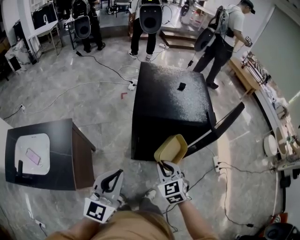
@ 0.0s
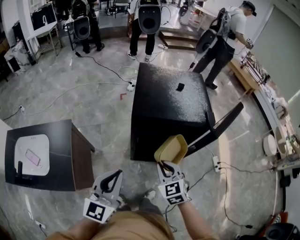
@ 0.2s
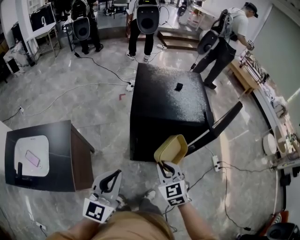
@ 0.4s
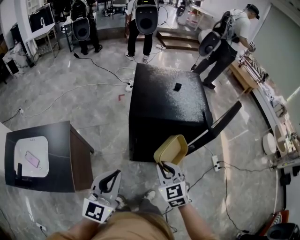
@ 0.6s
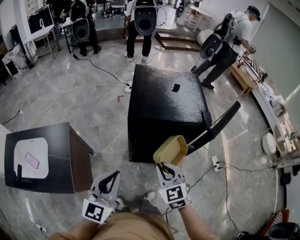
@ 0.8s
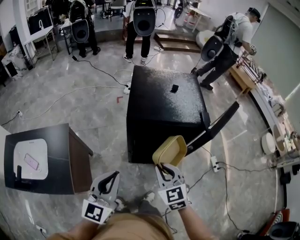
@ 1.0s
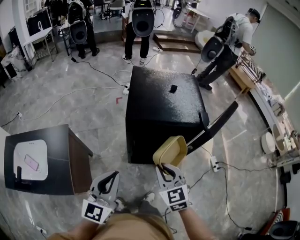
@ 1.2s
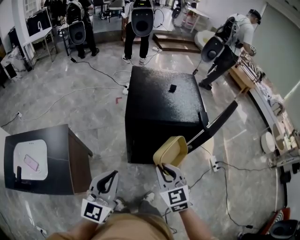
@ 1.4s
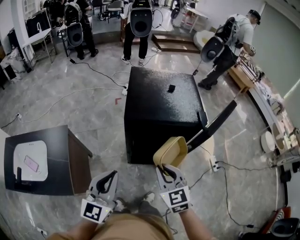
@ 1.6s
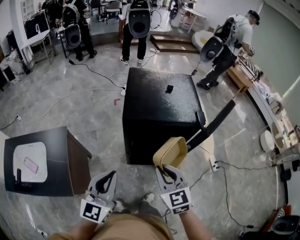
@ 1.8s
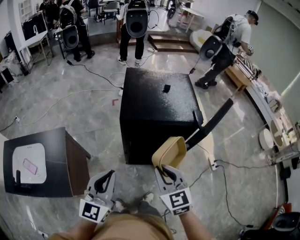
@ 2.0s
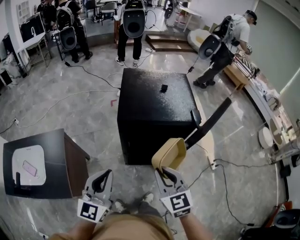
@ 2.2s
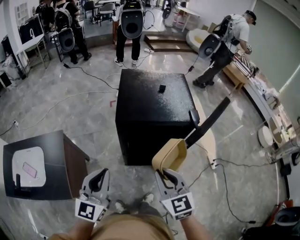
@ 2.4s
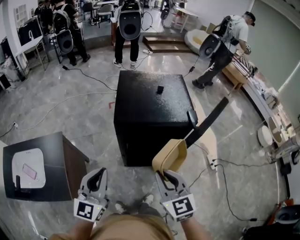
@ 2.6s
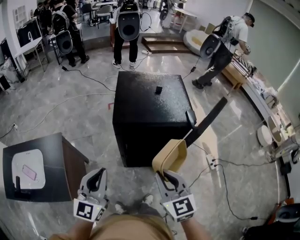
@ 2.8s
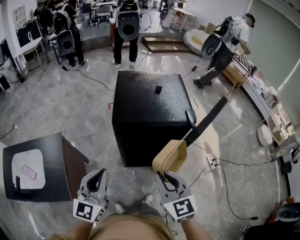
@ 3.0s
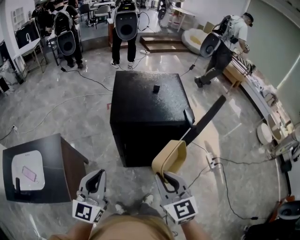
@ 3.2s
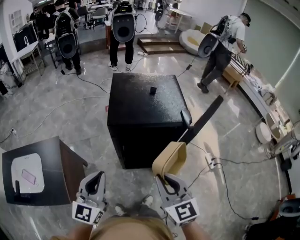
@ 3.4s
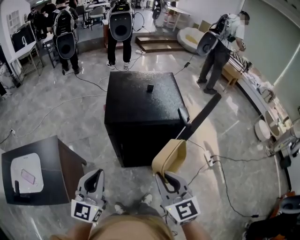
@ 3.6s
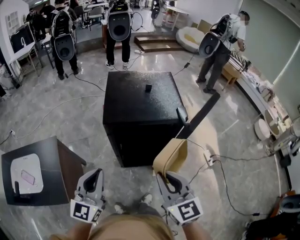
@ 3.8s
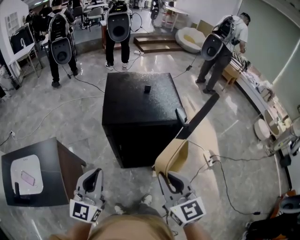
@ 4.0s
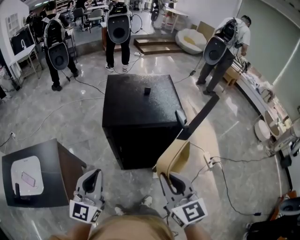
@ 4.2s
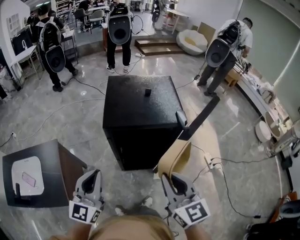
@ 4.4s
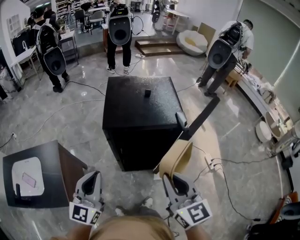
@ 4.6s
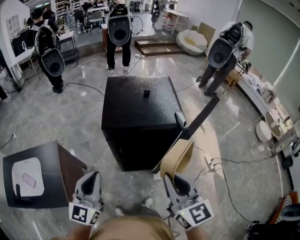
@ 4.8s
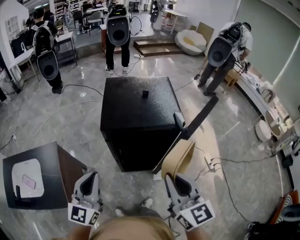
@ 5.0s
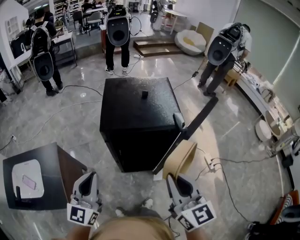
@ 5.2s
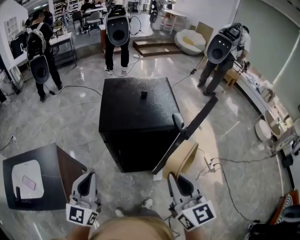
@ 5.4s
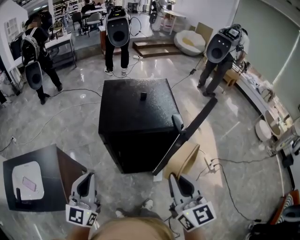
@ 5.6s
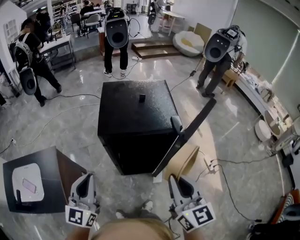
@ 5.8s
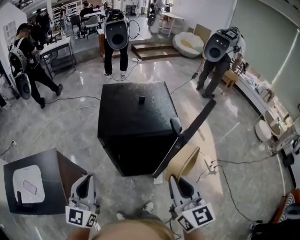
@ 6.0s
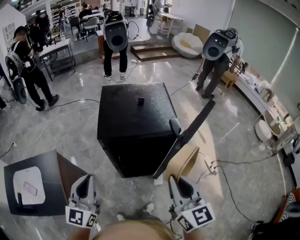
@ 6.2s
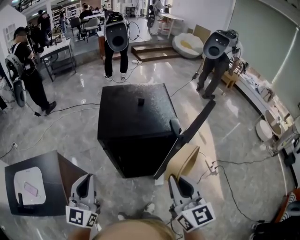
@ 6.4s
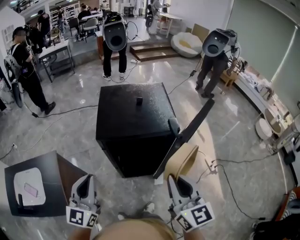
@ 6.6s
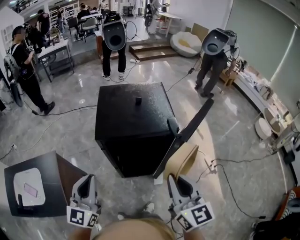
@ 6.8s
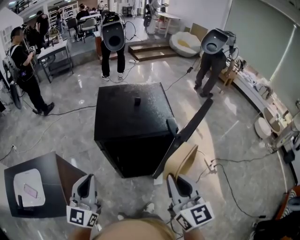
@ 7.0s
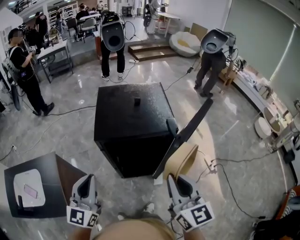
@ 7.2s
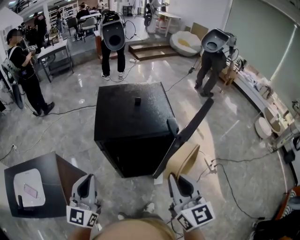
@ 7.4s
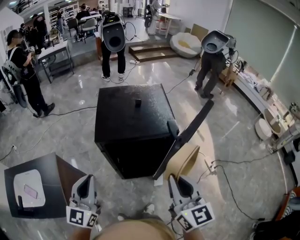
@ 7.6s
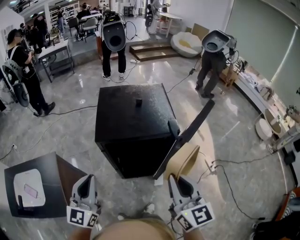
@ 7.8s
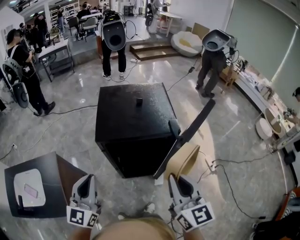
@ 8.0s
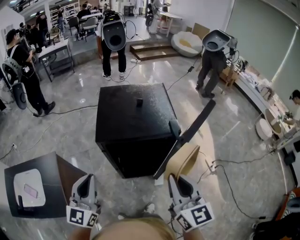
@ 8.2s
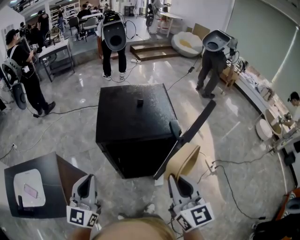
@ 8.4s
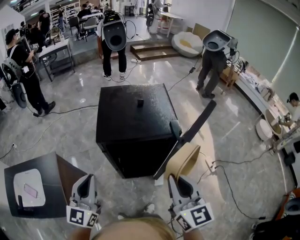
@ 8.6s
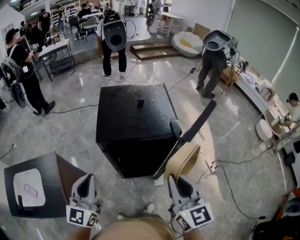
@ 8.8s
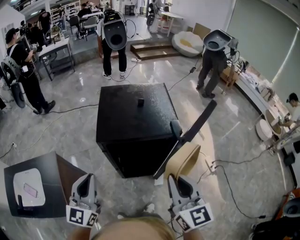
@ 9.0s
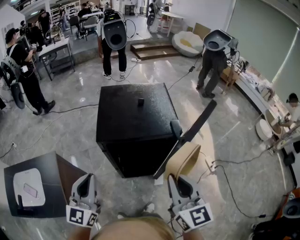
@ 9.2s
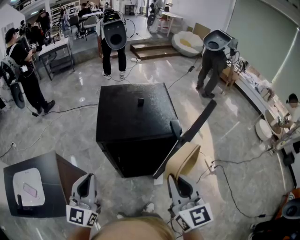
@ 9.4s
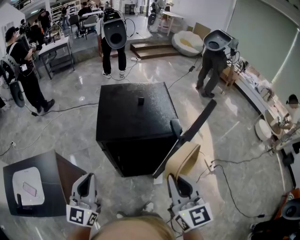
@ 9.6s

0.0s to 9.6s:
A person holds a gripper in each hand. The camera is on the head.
0.0s to 1.6s: The right gripper shifts some 5 cm upward.
1.6s to 3.2s: The right gripper is displaced upward by roughly 5 cm.
3.2s to 4.8s: The right gripper shifts about 5 cm upward.
4.8s to 8.0s: The grippers make only small movements.
8.0s to 9.6s: Both grippers stay about where they are.

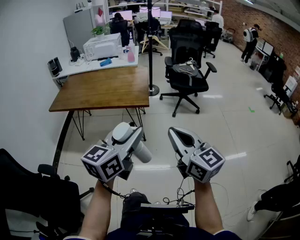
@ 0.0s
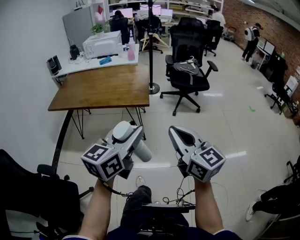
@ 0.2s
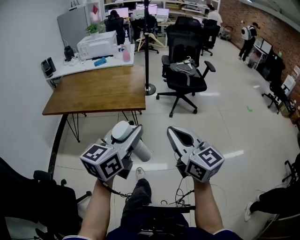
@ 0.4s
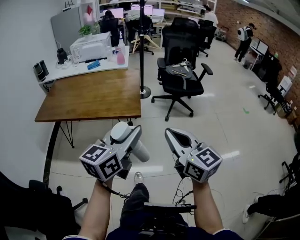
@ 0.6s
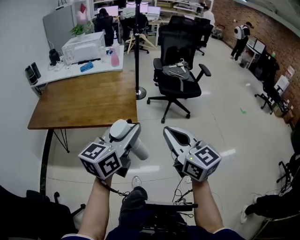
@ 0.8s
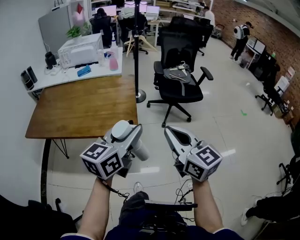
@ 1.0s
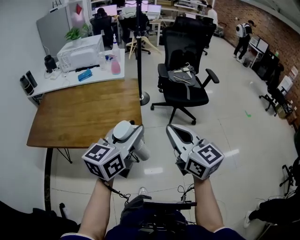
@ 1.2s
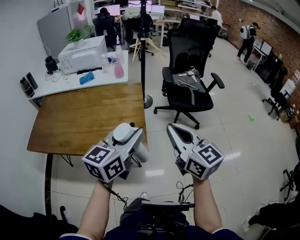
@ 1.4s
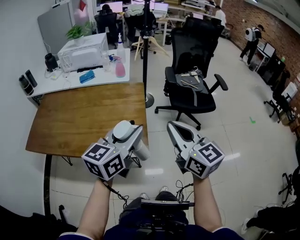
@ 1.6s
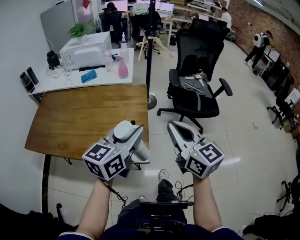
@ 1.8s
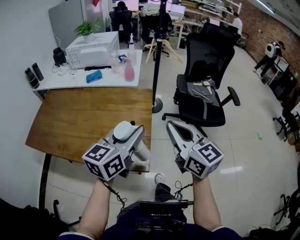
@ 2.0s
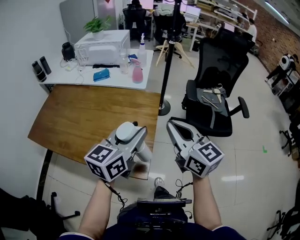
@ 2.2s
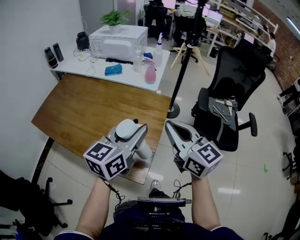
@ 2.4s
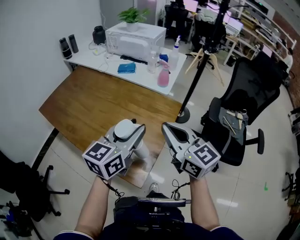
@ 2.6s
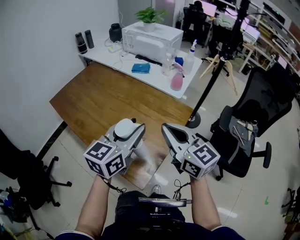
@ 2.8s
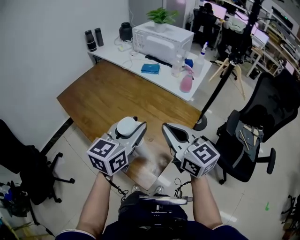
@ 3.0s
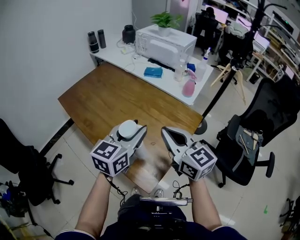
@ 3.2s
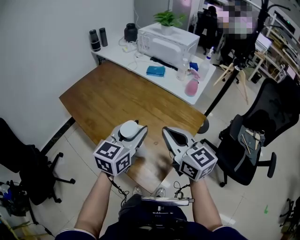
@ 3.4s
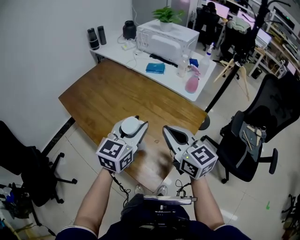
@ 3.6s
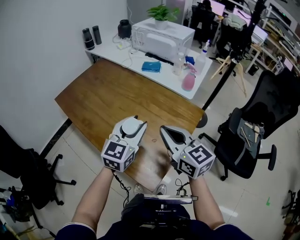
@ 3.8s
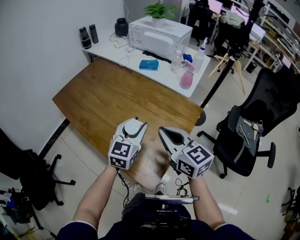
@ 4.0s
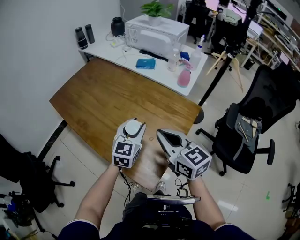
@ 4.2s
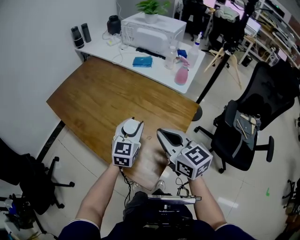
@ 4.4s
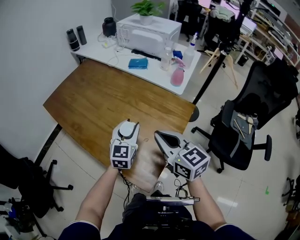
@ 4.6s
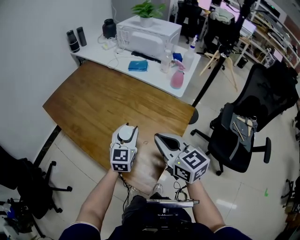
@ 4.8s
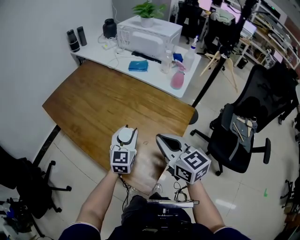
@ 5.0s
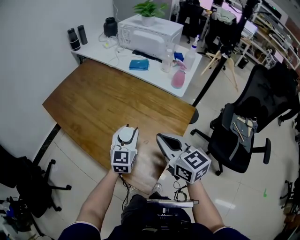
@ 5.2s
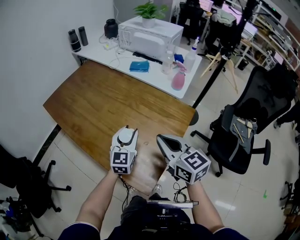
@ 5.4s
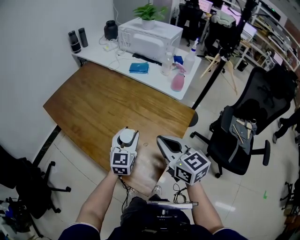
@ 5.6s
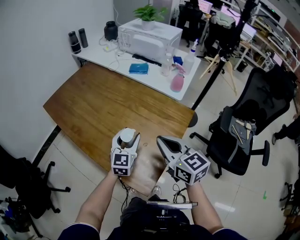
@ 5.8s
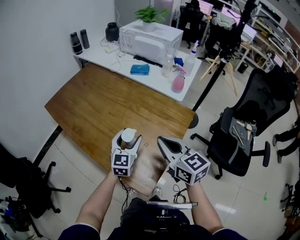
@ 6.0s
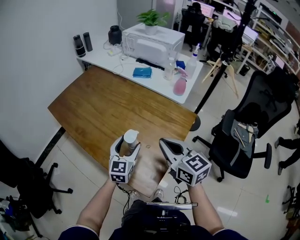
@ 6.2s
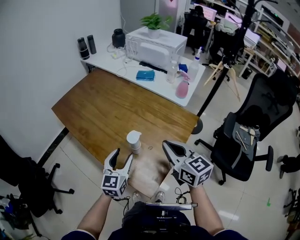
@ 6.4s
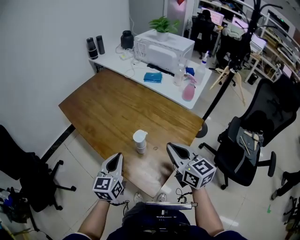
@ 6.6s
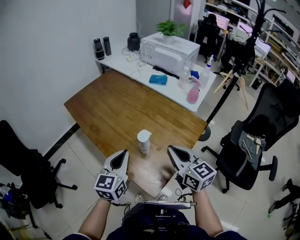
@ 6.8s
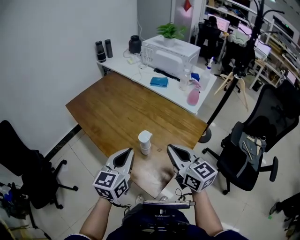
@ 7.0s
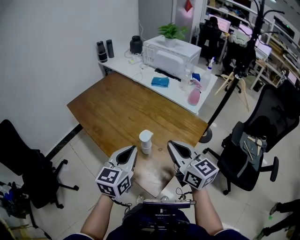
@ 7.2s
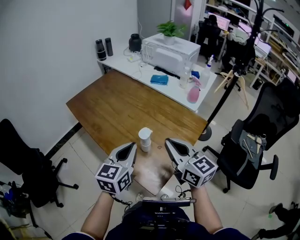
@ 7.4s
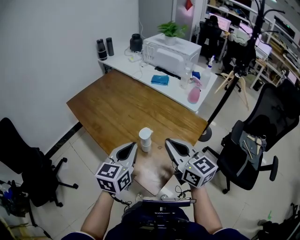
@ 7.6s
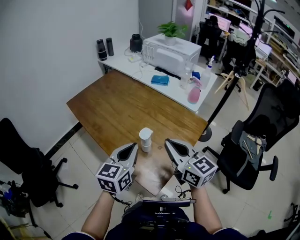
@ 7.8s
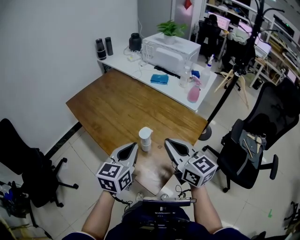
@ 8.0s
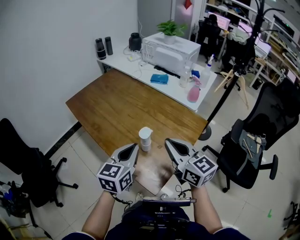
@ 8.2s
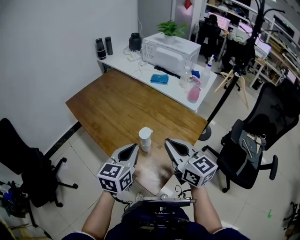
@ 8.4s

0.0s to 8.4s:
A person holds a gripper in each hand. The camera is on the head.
0.0s to 1.4s: Both grippers move forward, about 40 cm.
1.4s to 2.8s: The right gripper shifts by some 25 cm, and swivels approximately 40 degrees. Meanwhile the left gripper ends up roughly 20 cm from where it was, and swivels approximately 40 degrees.
2.8s to 4.2s: The right gripper moves downward and to the left, about 10 cm. Meanwhile the left gripper heads downward and forward, covering some 15 cm, and changes its angle by some 20 degrees.
4.2s to 5.6s: The grippers move only a little.
5.6s to 7.0s: The left gripper goes about 15 cm backward, upward and to the left, and closes.
7.0s to 8.4s: The grippers make only small movements.

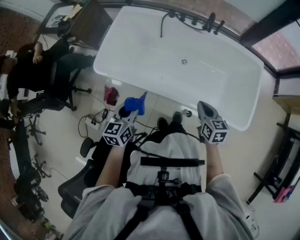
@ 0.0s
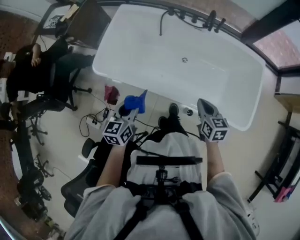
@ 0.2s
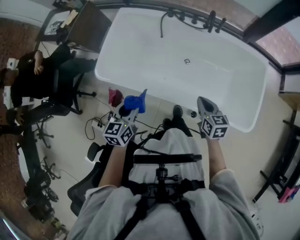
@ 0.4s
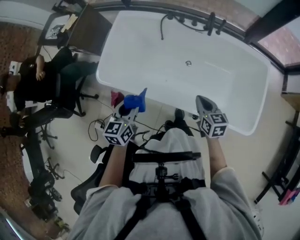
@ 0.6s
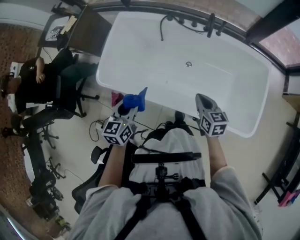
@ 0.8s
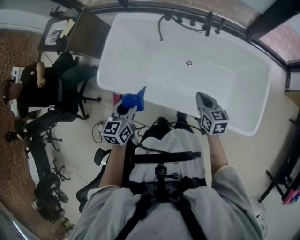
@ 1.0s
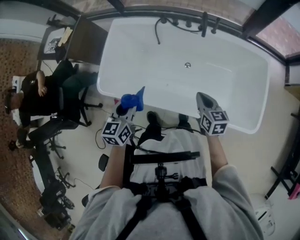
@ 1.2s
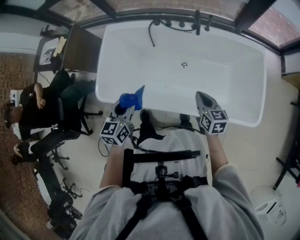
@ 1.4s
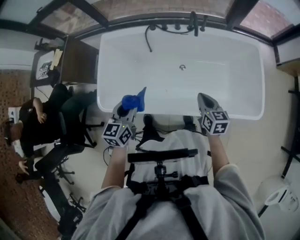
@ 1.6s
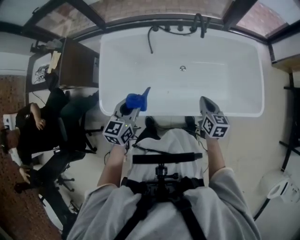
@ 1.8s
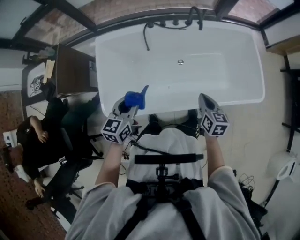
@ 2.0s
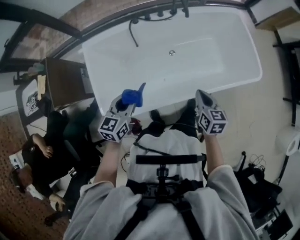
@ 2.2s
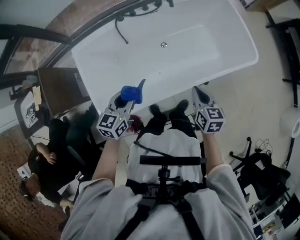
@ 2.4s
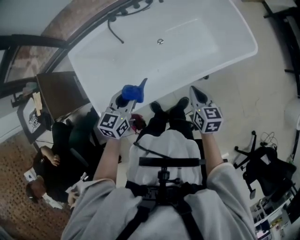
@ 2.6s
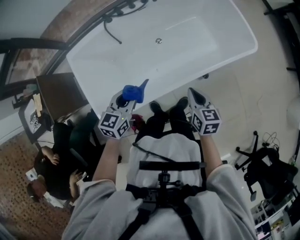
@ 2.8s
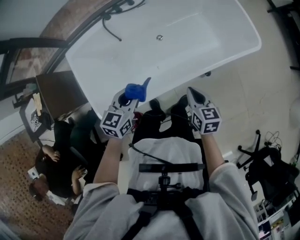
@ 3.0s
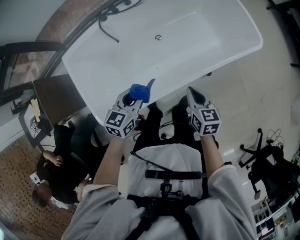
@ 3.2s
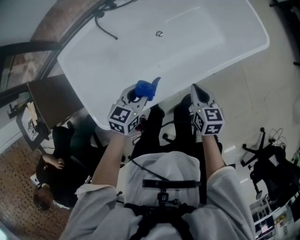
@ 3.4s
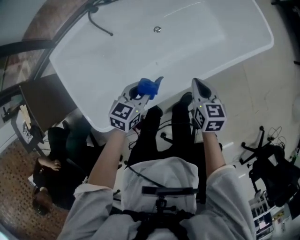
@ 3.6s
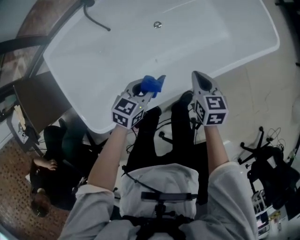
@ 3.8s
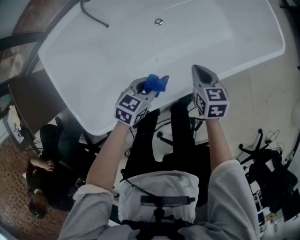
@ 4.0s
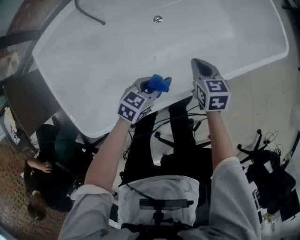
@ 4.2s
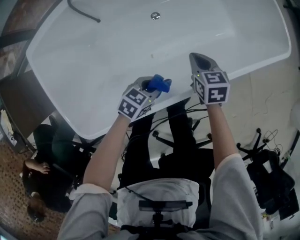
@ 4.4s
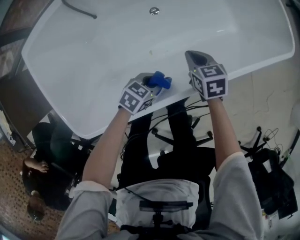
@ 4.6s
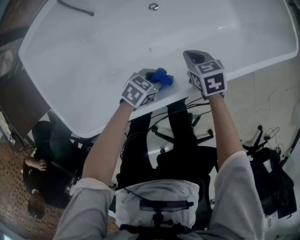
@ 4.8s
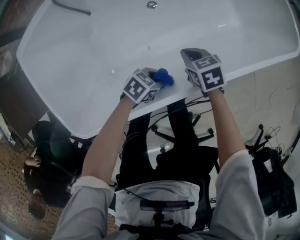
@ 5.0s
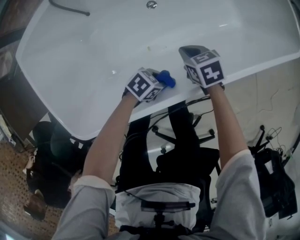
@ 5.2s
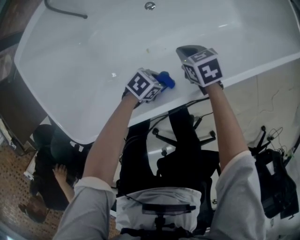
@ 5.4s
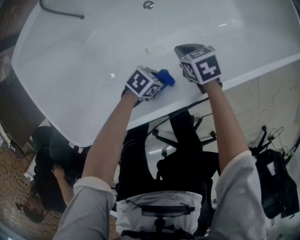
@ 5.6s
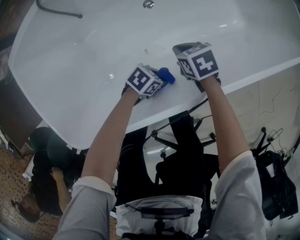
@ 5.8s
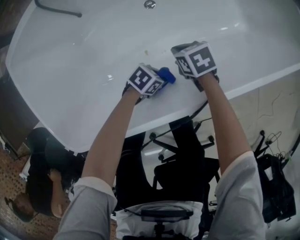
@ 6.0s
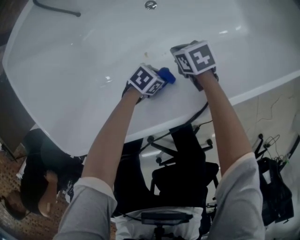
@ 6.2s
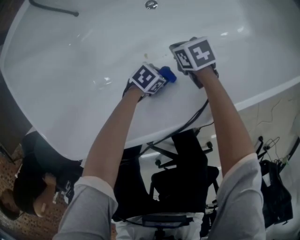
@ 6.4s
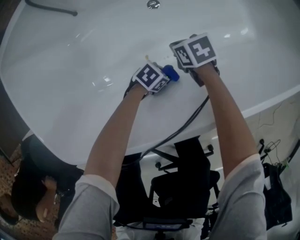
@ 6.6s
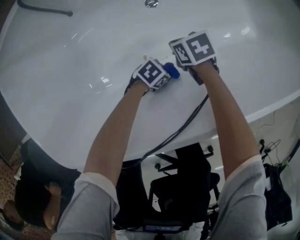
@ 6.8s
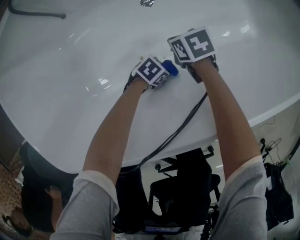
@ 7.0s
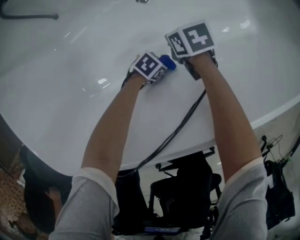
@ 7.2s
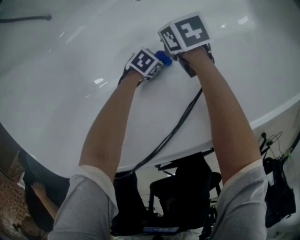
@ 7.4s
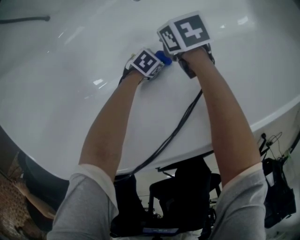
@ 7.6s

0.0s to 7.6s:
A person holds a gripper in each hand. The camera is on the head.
0.0s to 1.6s: The grippers both shift forward by about 20 cm.
1.6s to 3.0s: The left gripper is displaced downward by roughly 10 cm, and turns by approximately 40 degrees. The right gripper ends up some 15 cm from where it was, and turns by roughly 30 degrees.
3.0s to 4.6s: The left gripper goes about 35 cm downward, and rotates about 40 degrees, while the right gripper shifts about 30 cm downward and forward.
4.6s to 6.0s: The two grippers go about 15 cm downward. The right gripper changes its angle by some 20 degrees.
6.0s to 7.6s: The right gripper shifts roughly 10 cm downward, while the left gripper goes about 20 cm downward.
